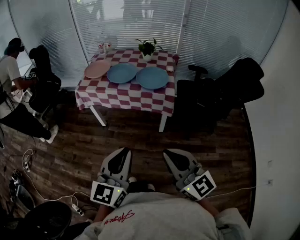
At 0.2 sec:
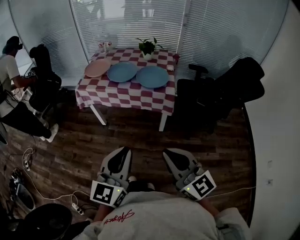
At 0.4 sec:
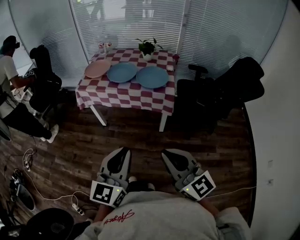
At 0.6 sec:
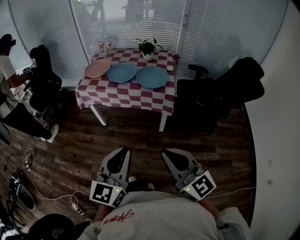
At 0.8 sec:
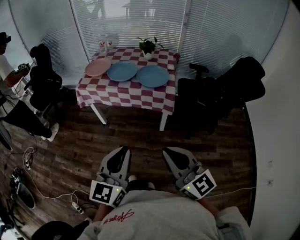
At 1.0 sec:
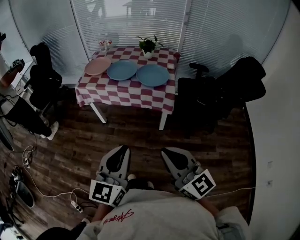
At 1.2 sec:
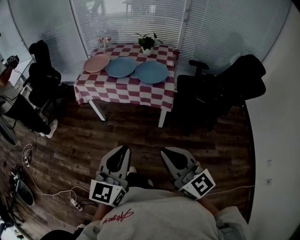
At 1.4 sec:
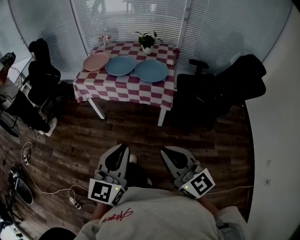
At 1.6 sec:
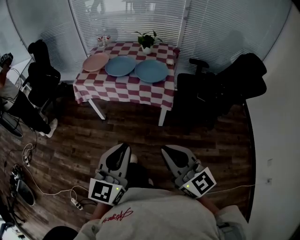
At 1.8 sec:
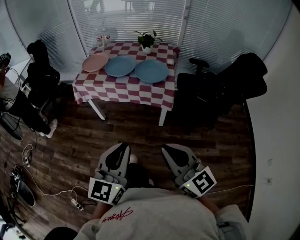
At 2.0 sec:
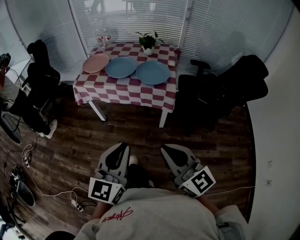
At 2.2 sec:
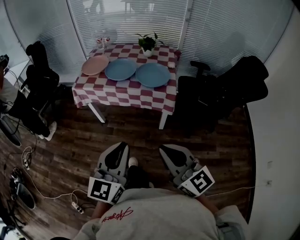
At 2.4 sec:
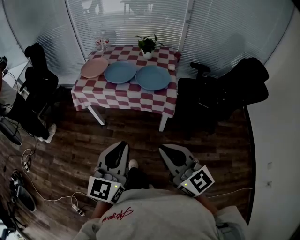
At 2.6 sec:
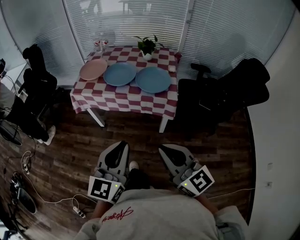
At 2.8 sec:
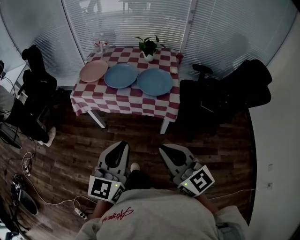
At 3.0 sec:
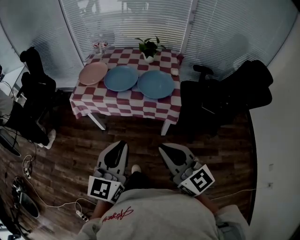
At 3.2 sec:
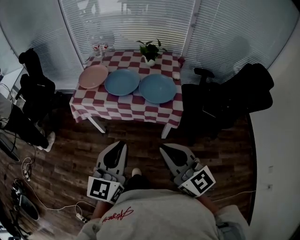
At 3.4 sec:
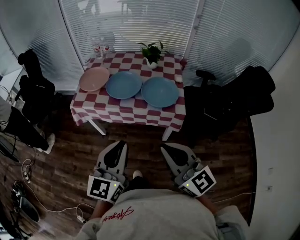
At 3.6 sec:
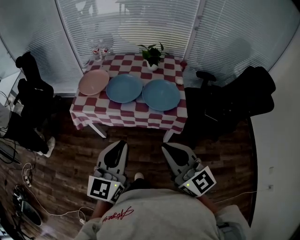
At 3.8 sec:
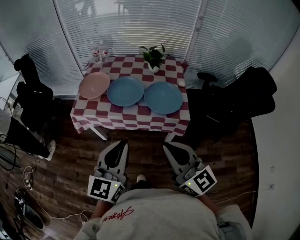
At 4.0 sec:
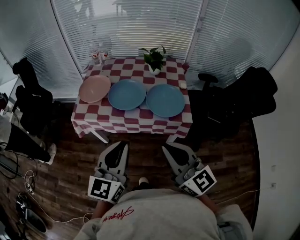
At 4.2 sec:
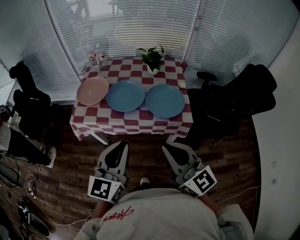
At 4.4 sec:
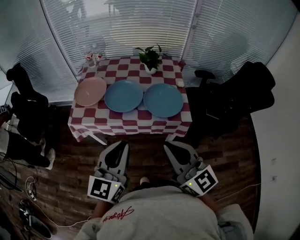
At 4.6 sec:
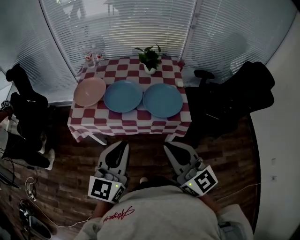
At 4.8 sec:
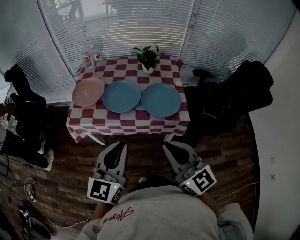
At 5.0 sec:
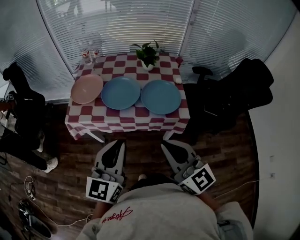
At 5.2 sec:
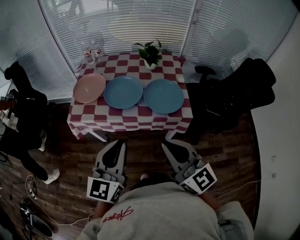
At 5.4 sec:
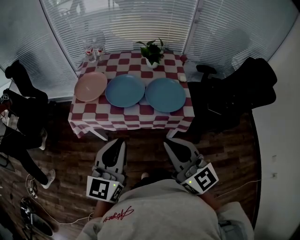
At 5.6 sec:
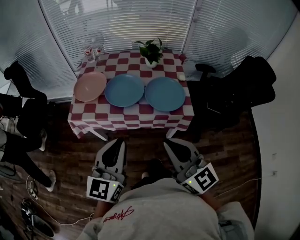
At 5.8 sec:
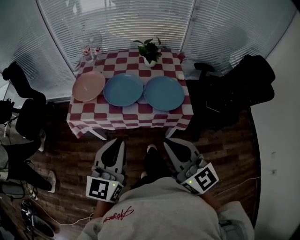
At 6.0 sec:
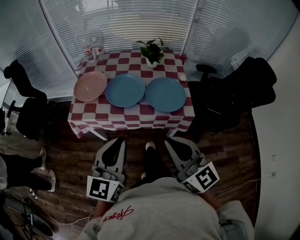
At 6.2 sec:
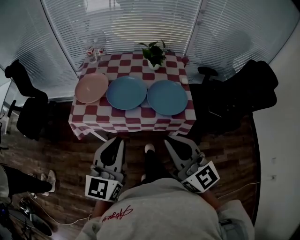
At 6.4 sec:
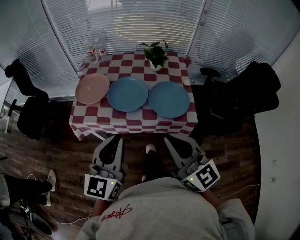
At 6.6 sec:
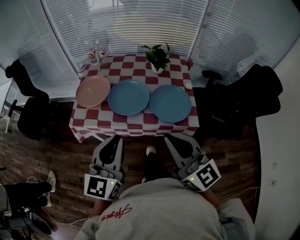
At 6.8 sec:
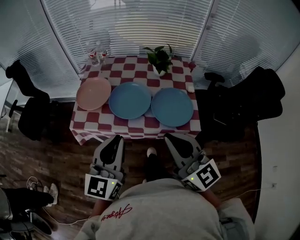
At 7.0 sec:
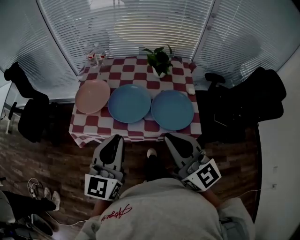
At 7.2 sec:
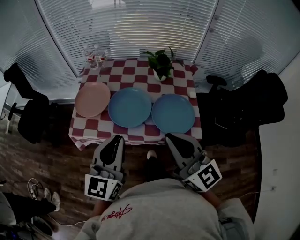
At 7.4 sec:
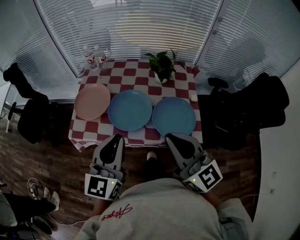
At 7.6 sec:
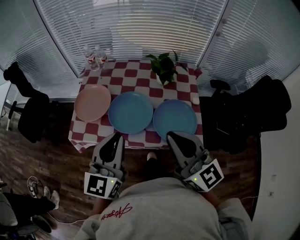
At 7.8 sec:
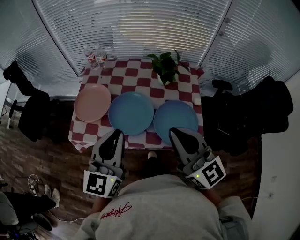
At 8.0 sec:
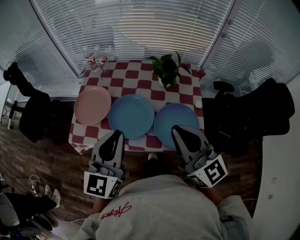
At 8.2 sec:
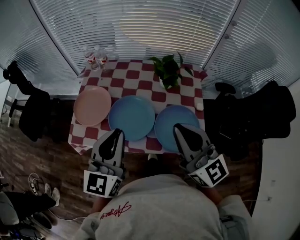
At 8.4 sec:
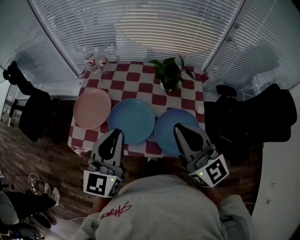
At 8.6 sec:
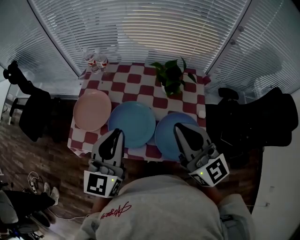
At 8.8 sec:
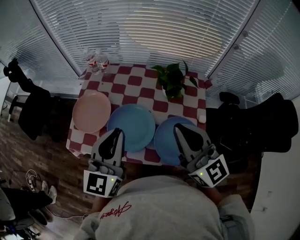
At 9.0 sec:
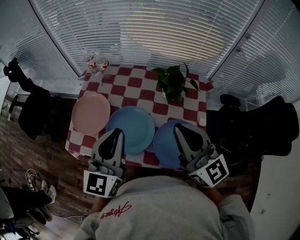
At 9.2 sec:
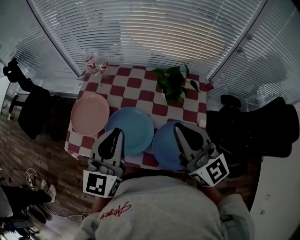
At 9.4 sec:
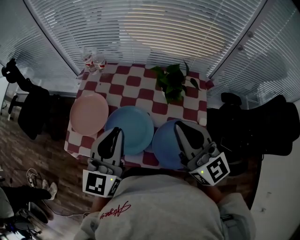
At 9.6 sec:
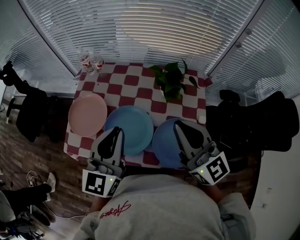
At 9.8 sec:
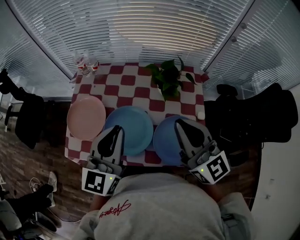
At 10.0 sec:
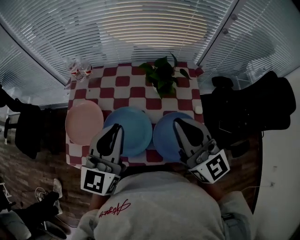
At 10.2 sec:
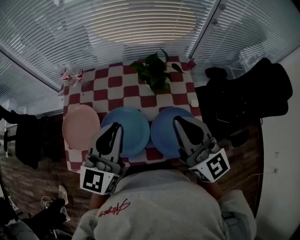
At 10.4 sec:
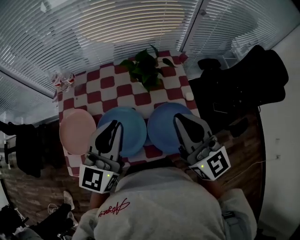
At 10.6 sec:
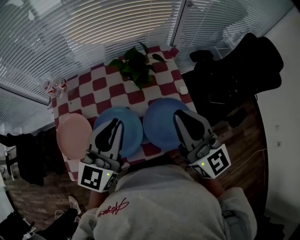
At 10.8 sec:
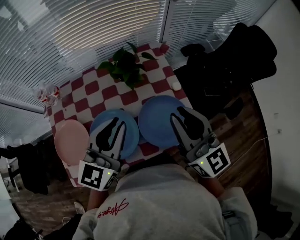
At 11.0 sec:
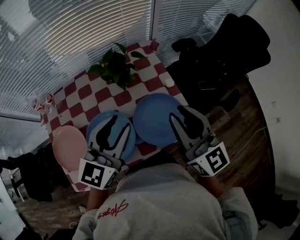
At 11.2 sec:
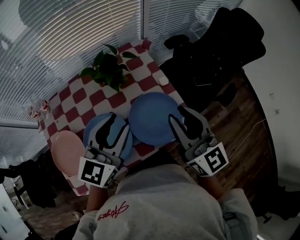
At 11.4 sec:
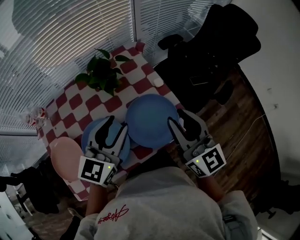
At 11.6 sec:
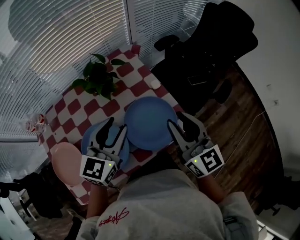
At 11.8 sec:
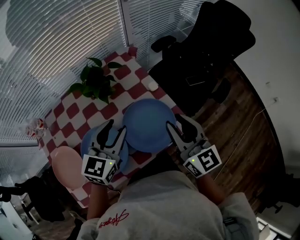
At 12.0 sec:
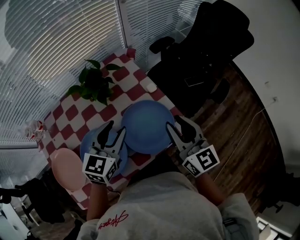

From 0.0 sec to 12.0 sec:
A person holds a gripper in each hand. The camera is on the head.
From 0.0 sec to 1.6 sec: The grippers make only small movements.
From 1.6 sec to 3.0 sec: The grippers both shift forward by some 15 cm.
From 3.0 sec to 4.4 sec: The grippers both shift forward by roughly 15 cm.
From 4.4 sec to 6.0 sec: The grippers move only a little.
From 6.0 sec to 7.6 sec: The grippers both shift forward by some 20 cm.
From 7.6 sec to 9.0 sec: The grippers both shift forward by some 15 cm.
From 9.0 sec to 10.4 sec: The right gripper rotates roughly 20 degrees, while the left gripper travels forward by approximately 5 cm, and turns by some 20 degrees.
From 10.4 sec to 12.0 sec: The left gripper ends up roughly 20 cm from where it was, swivels approximately 30 degrees, and opens its fingers. The right gripper changes place by roughly 20 cm, turns by roughly 30 degrees, and opens up.

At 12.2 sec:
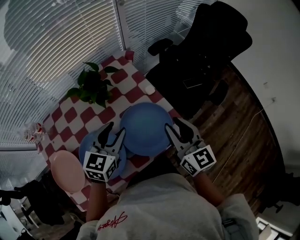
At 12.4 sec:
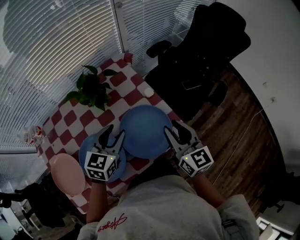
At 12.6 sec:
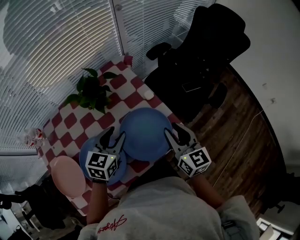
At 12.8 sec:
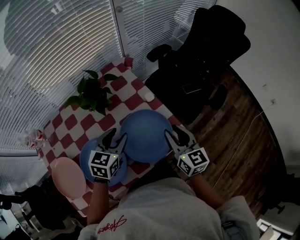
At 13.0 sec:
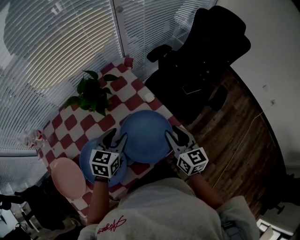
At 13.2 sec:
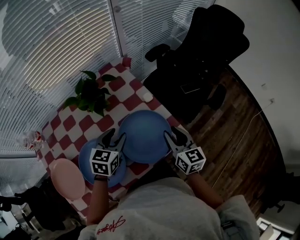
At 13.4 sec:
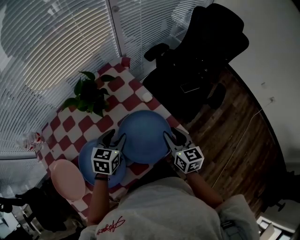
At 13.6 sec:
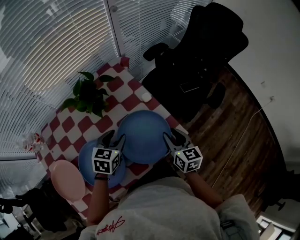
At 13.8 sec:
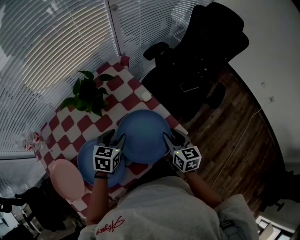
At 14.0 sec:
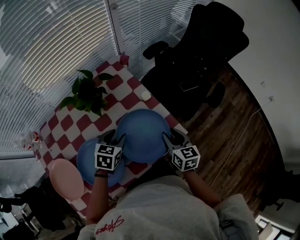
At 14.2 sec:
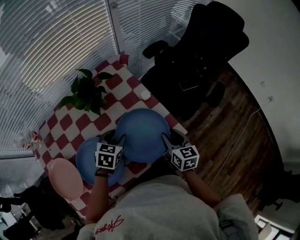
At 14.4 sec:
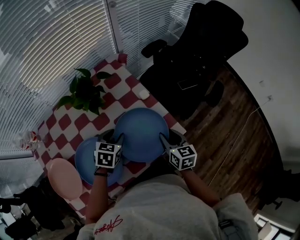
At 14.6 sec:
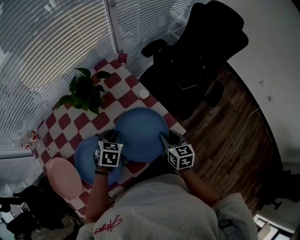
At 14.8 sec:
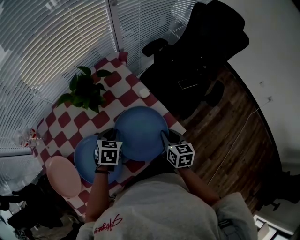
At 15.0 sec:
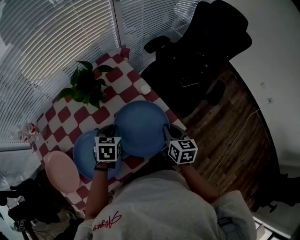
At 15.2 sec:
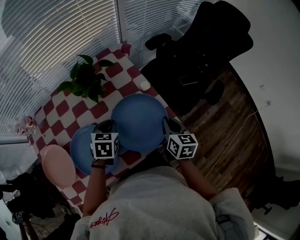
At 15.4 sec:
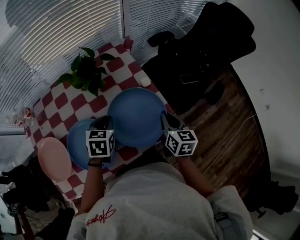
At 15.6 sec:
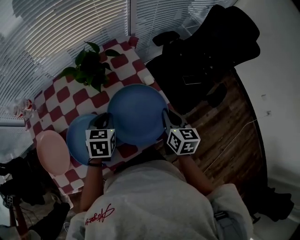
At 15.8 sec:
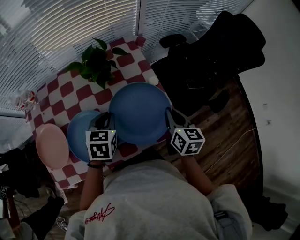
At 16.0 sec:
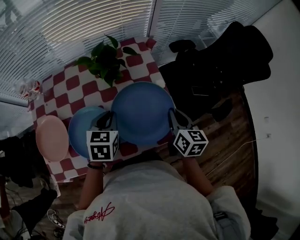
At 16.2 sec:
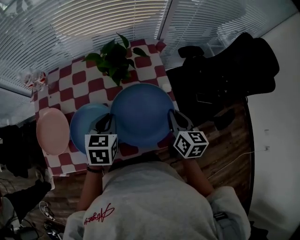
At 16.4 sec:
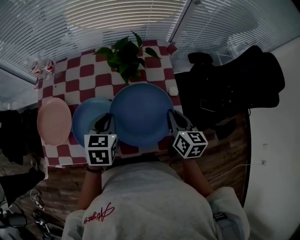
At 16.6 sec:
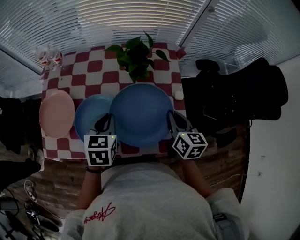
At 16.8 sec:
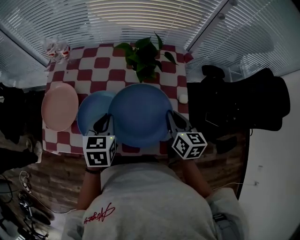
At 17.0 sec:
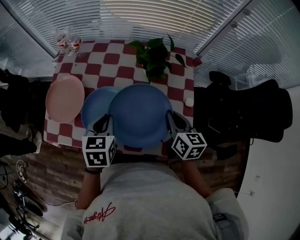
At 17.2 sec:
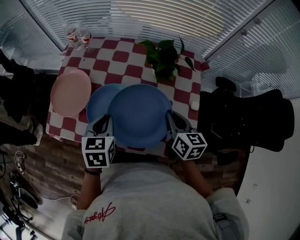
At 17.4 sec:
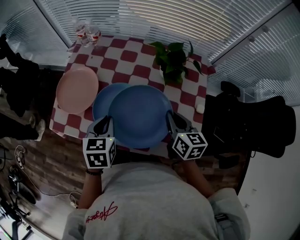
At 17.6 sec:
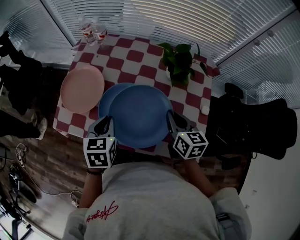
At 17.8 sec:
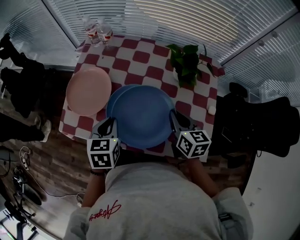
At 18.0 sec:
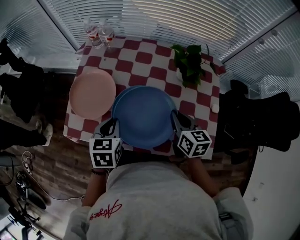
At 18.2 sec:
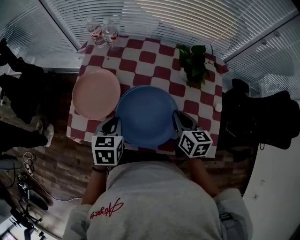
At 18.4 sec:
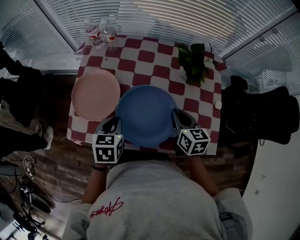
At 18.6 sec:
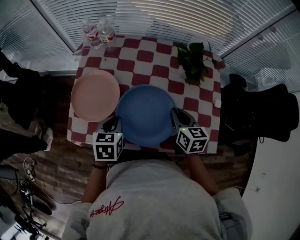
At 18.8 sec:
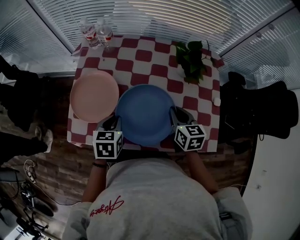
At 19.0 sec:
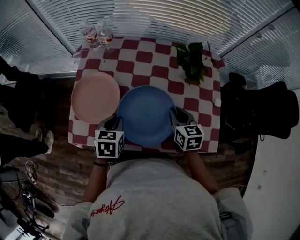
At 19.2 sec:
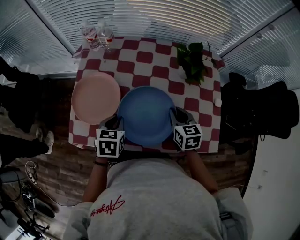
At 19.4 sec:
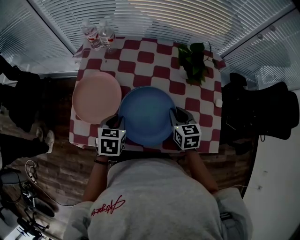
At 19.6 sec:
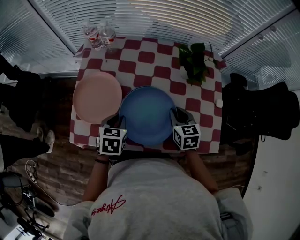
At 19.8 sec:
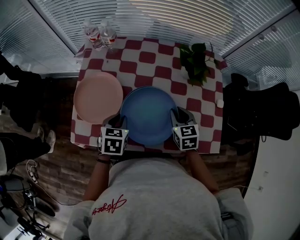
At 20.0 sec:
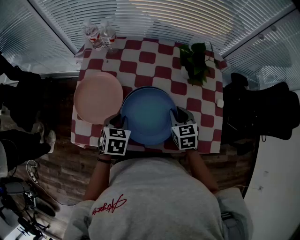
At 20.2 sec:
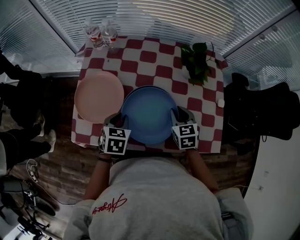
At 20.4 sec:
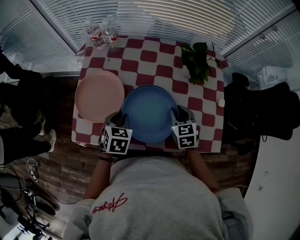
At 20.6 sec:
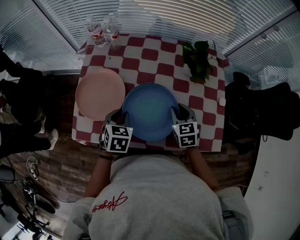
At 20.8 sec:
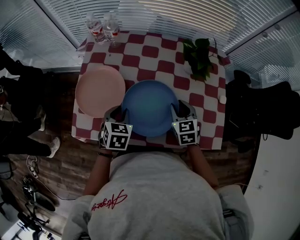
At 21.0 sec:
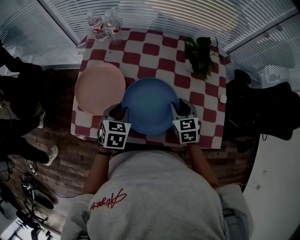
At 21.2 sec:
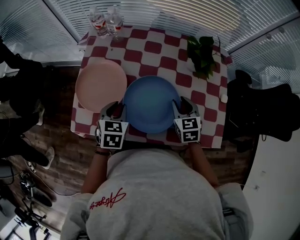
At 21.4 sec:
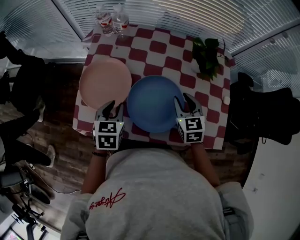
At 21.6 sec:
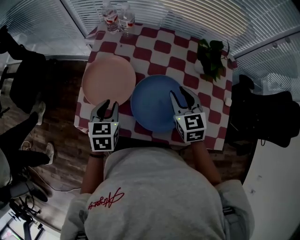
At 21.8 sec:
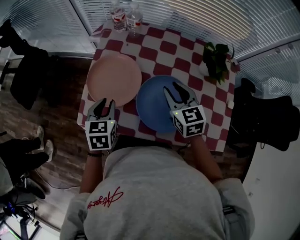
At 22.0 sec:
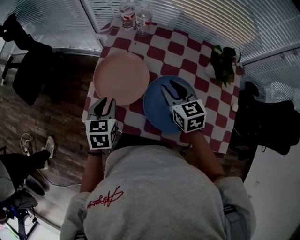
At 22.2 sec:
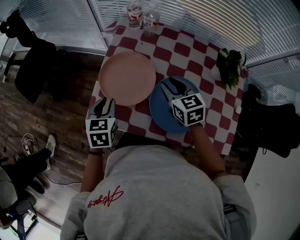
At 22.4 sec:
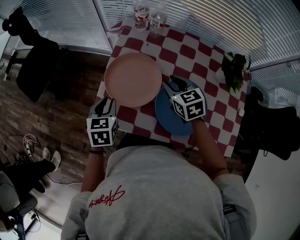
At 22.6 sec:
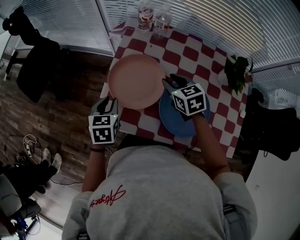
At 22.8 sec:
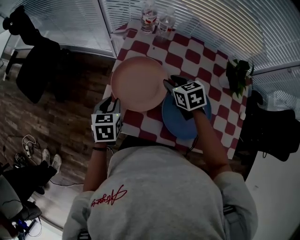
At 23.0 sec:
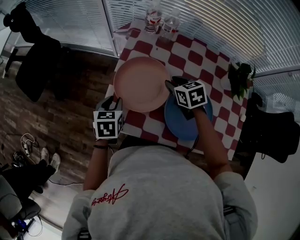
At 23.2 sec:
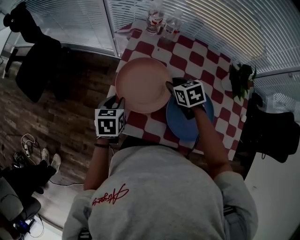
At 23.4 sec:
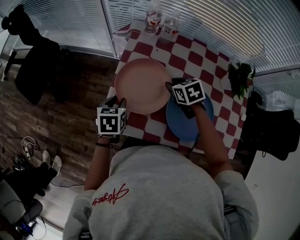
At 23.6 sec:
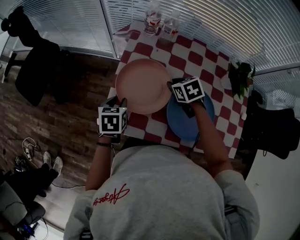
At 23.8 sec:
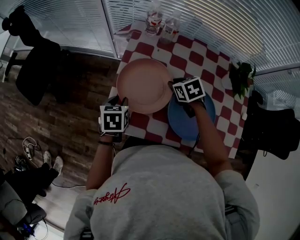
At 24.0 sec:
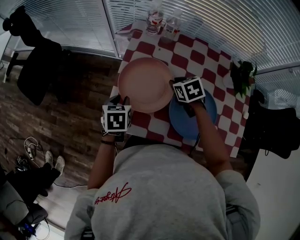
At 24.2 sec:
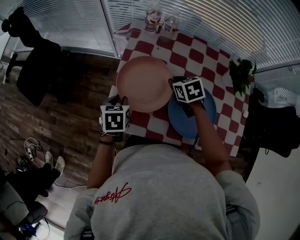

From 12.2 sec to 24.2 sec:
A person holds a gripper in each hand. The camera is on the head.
From 12.2 sec to 13.8 sec: The grippers both shift downward by some 15 cm. The right gripper turns by roughly 20 degrees.
From 13.8 sec to 15.2 sec: The right gripper closes up, while the left gripper closes its fingers.
From 15.2 sec to 16.6 sec: The left gripper shifts by approximately 15 cm, and swivels some 30 degrees. Meanwhile the right gripper ends up approximately 15 cm from where it was, and swivels about 30 degrees.
From 16.6 sec to 18.2 sec: Both grippers move to the left, some 20 cm.
From 18.2 sec to 19.8 sec: The grippers both shift downward by approximately 5 cm. The right gripper swivels some 20 degrees.
From 19.8 sec to 21.2 sec: There are only small adjustments of the grippers.
From 21.2 sec to 22.6 sec: The left gripper moves to the left, approximately 20 cm, while the right gripper shifts some 25 cm to the left and forward, and rotates approximately 20 degrees.
From 22.6 sec to 24.2 sec: The right gripper moves roughly 5 cm.
